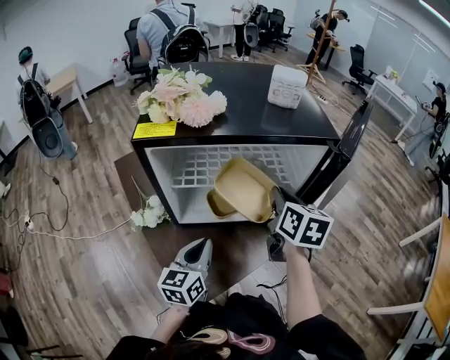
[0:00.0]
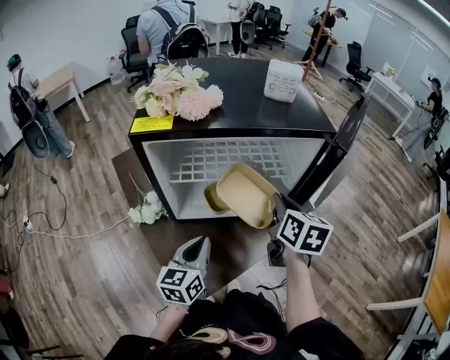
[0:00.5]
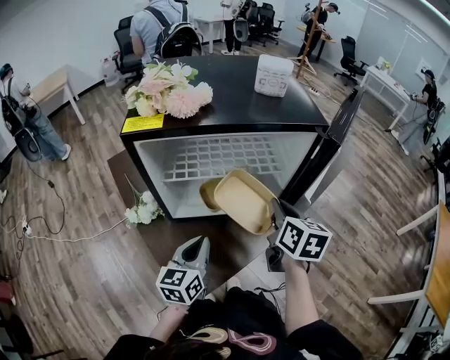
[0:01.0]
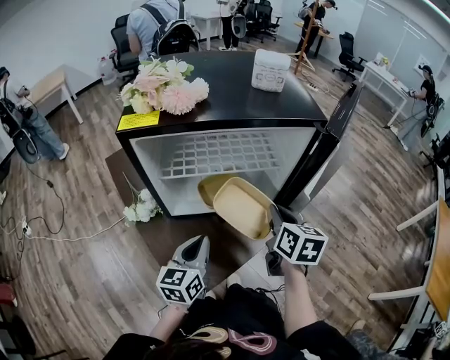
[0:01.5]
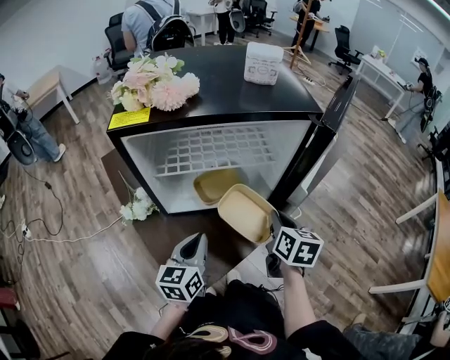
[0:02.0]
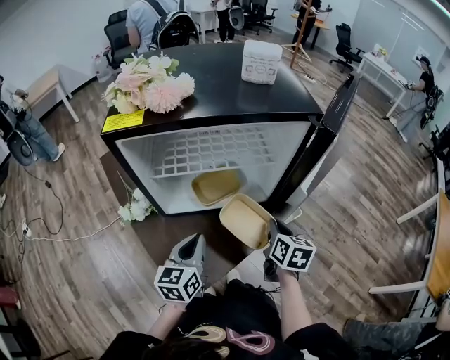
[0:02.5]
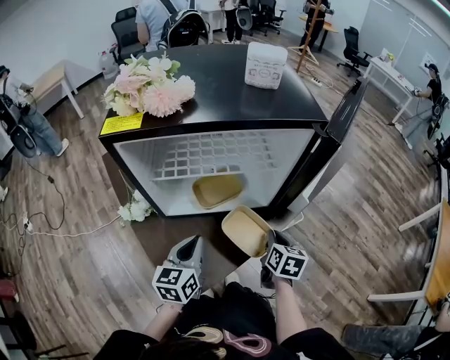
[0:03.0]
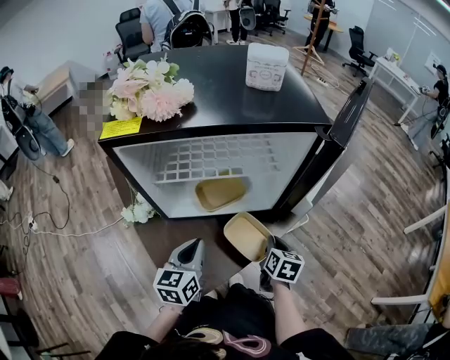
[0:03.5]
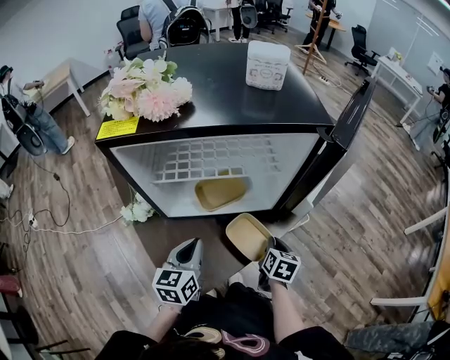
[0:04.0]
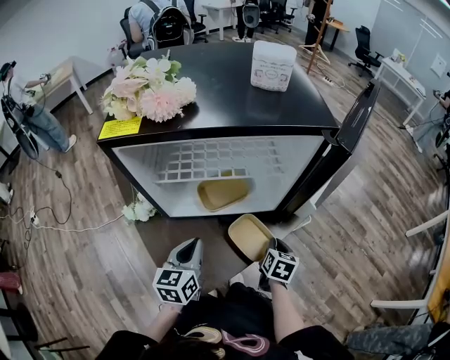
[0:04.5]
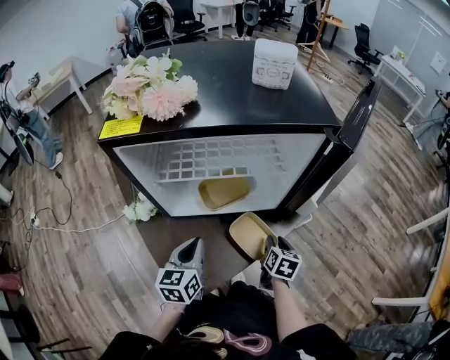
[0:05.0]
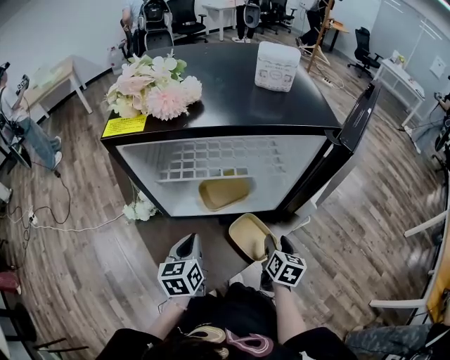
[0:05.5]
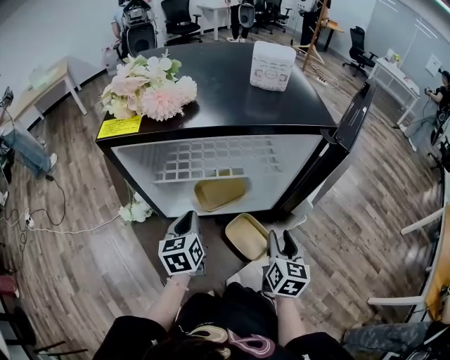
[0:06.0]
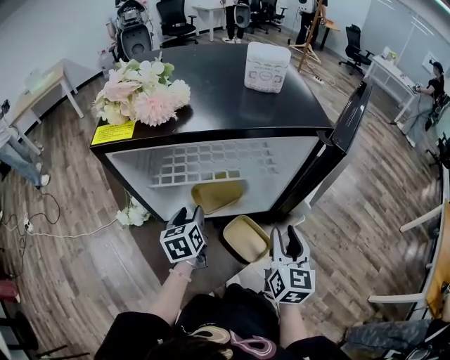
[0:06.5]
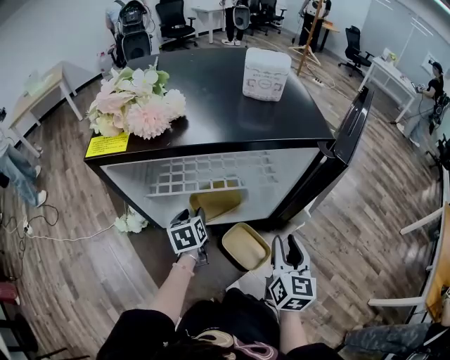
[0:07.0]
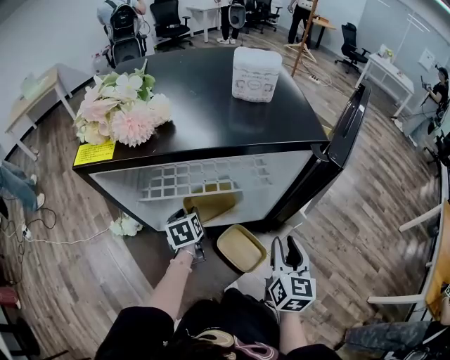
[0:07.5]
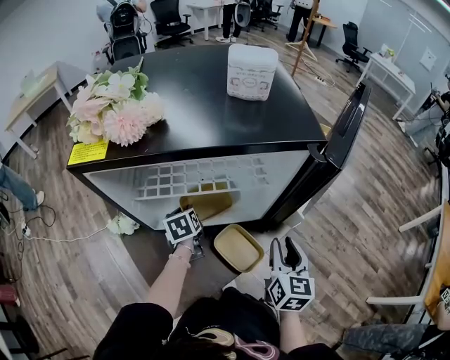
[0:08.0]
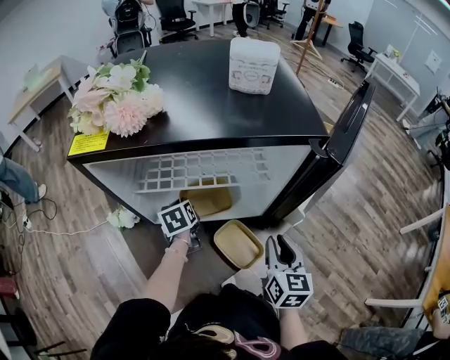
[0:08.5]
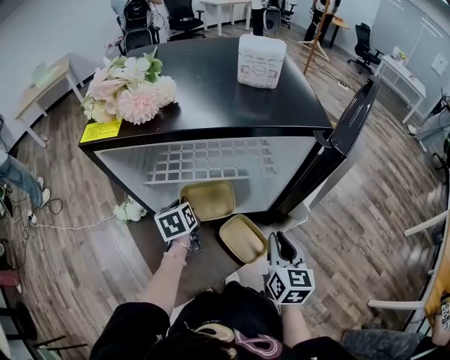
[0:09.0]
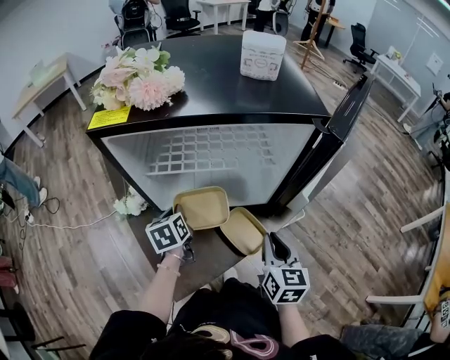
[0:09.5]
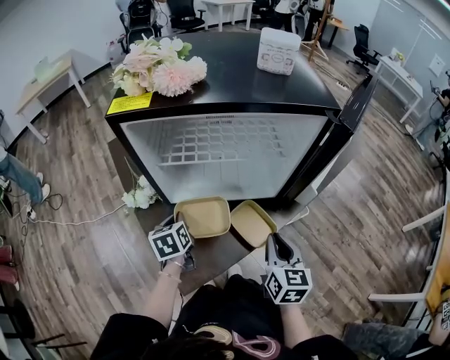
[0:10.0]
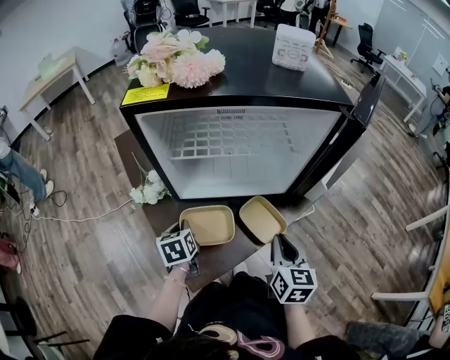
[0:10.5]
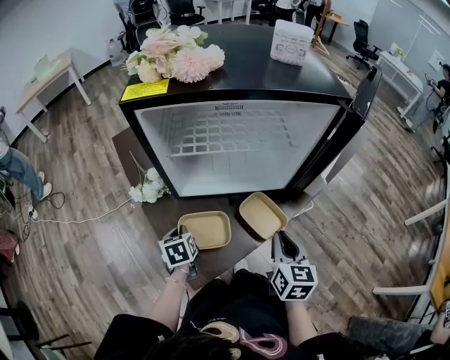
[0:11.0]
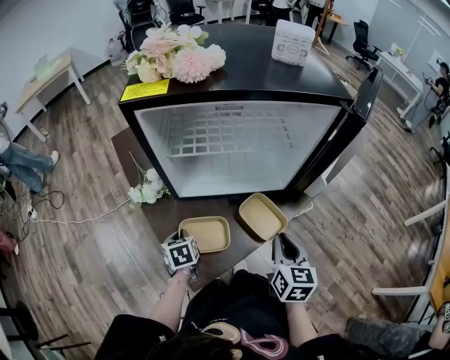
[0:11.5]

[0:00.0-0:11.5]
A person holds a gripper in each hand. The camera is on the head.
0:00.0 to 0:02.0: The right gripper is displaced downward, backward and to the right by approximately 15 cm.
0:02.0 to 0:04.0: The right gripper heads downward, covering approximately 15 cm.
0:04.0 to 0:06.0: The left gripper moves forward, approximately 10 cm, while the right gripper shifts about 10 cm upward, changes its angle by roughly 20 degrees, and opens up.
0:06.0 to 0:07.5: The right gripper ends up roughly 5 cm from where it was; the left gripper heads forward and downward, covering approximately 10 cm, and opens up.
0:07.5 to 0:09.5: The left gripper shifts some 5 cm backward, and closes up; the right gripper shifts by about 5 cm, and closes up.
0:09.5 to 0:11.5: The left gripper travels downward, backward and to the left by roughly 15 cm. Meanwhile the right gripper changes place by about 5 cm.

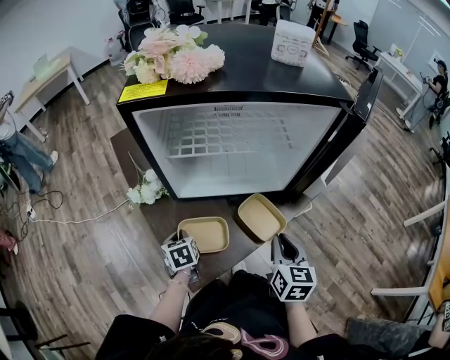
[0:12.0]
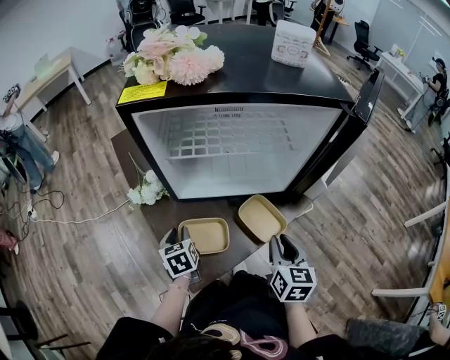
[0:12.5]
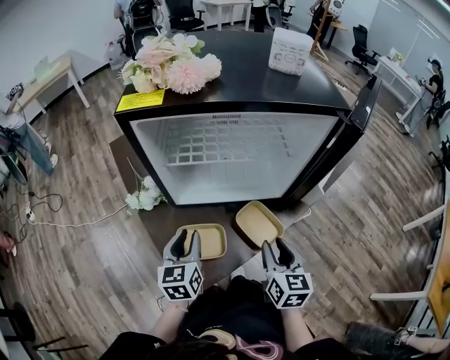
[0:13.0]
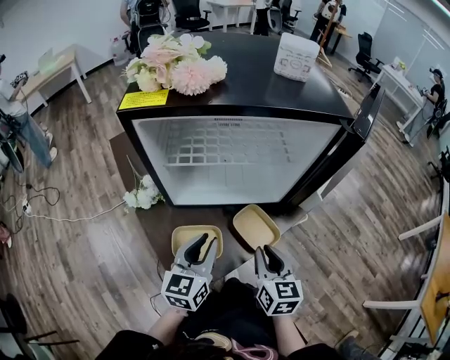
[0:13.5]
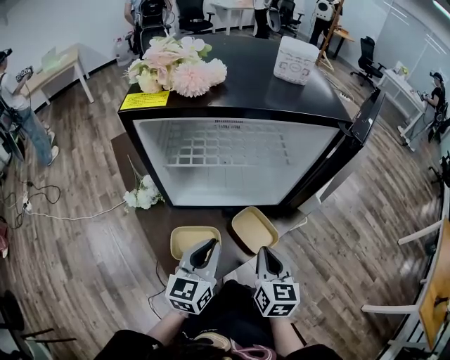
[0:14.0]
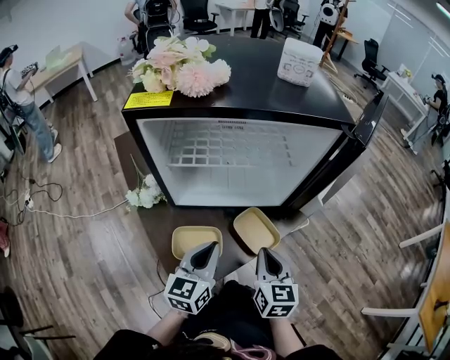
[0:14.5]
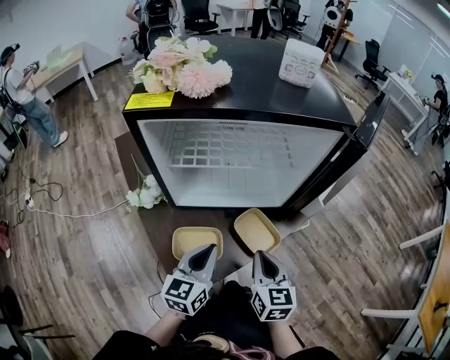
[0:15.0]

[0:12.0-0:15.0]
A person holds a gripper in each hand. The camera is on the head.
0:12.0 to 0:13.5: The left gripper is displaced upward and to the right by some 20 cm, tips its fingers upward by roughly 40 degrees, and opens.
0:13.5 to 0:15.0: The left gripper closes.

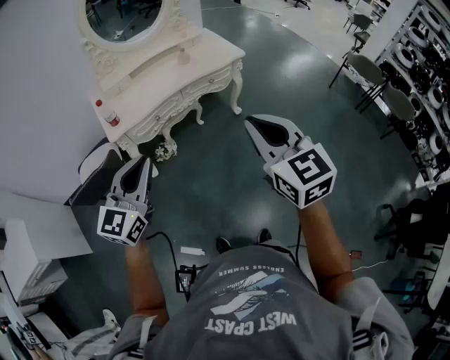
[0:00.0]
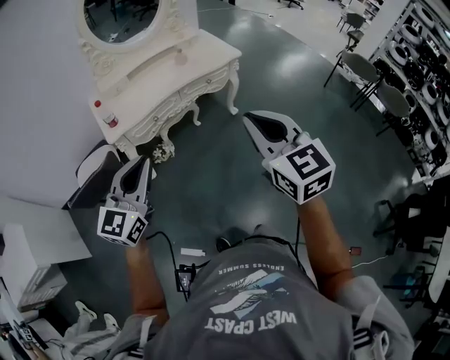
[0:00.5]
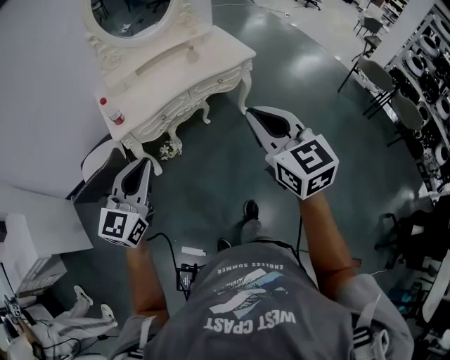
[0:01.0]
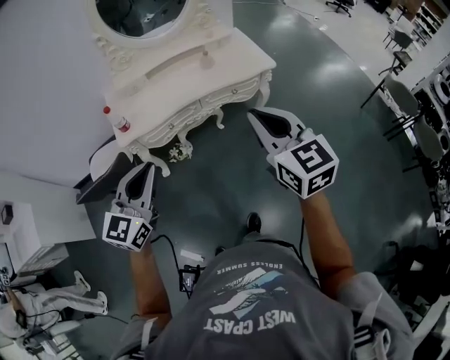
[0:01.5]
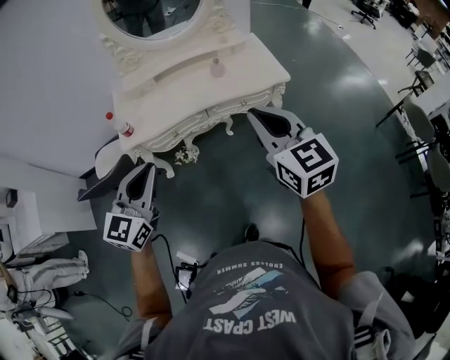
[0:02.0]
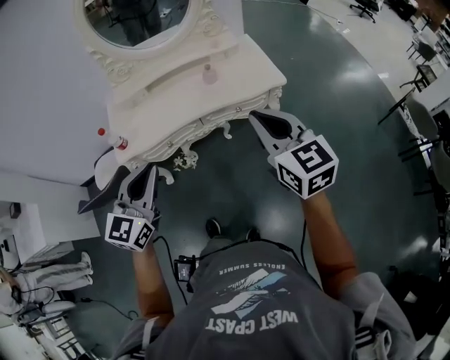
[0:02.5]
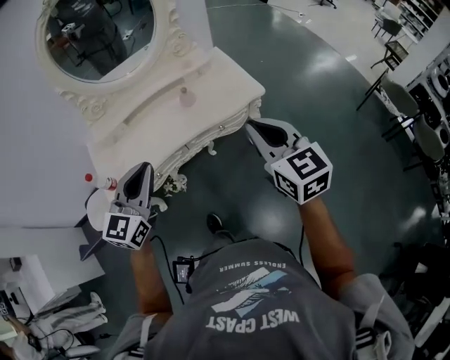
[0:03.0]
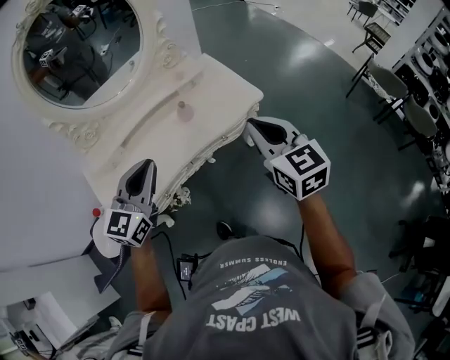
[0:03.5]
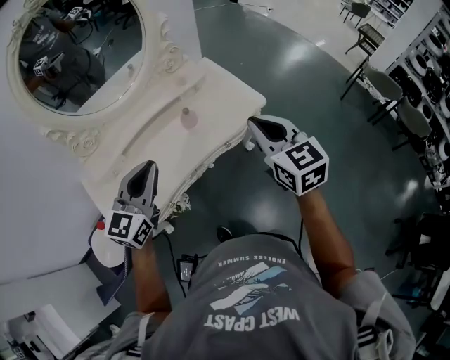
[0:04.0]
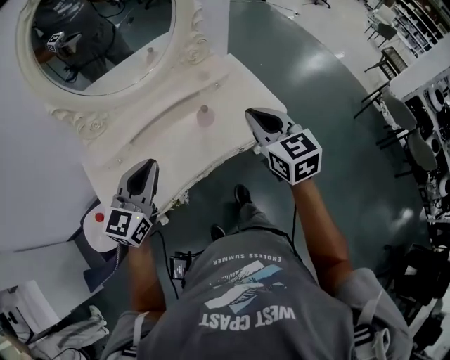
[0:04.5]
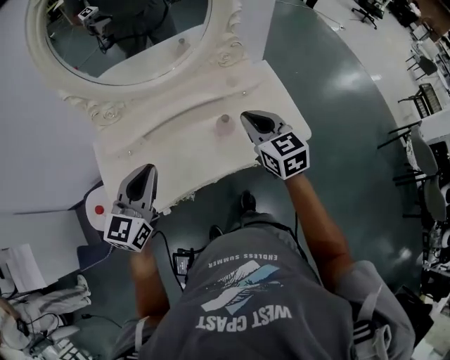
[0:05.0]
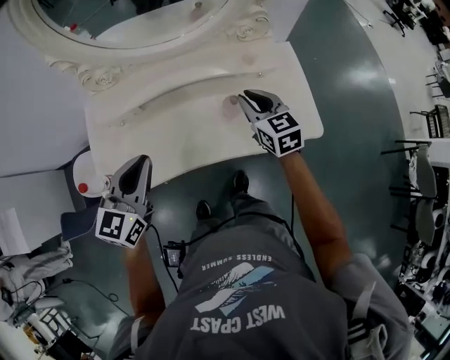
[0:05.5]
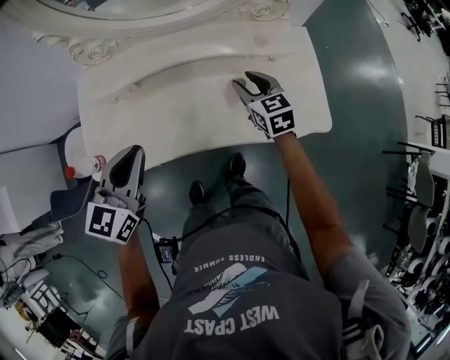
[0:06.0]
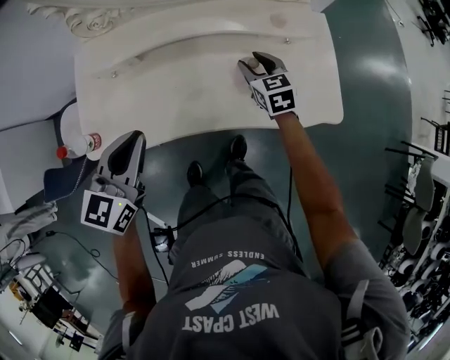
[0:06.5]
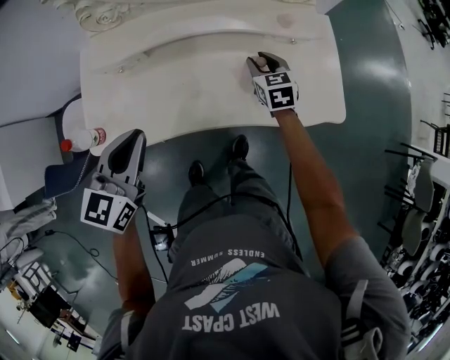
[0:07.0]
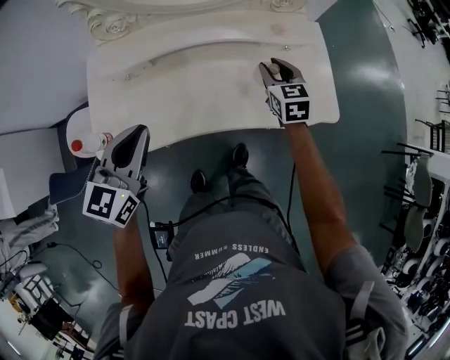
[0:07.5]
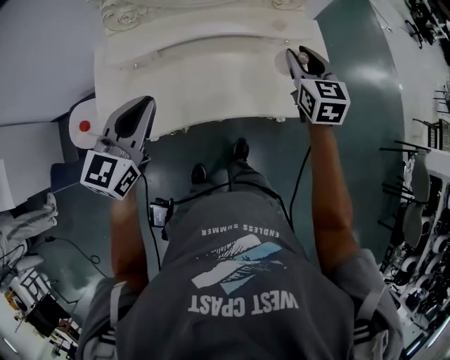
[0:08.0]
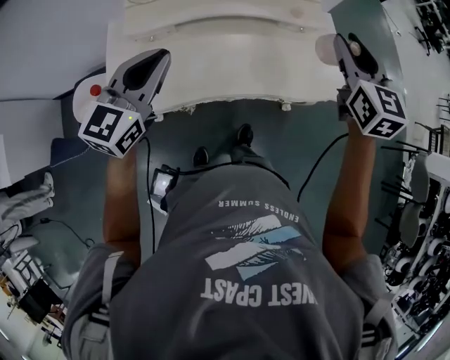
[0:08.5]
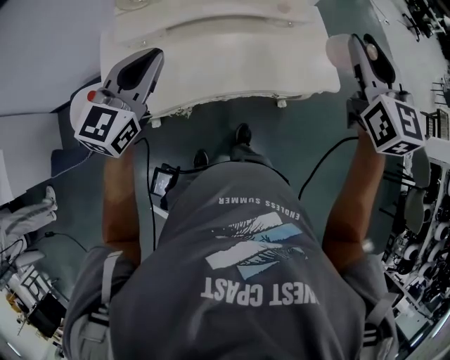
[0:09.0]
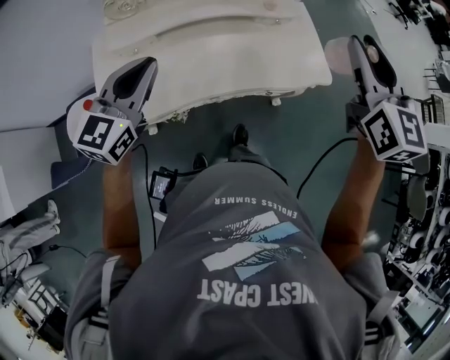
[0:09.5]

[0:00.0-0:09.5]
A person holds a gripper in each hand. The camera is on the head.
0:00.0 to 0:02.0: The left gripper moves forward, roughly 15 cm, while the right gripper heads forward, covering some 25 cm.
0:02.0 to 0:04.0: The two grippers go some 25 cm forward. The right gripper changes its angle by roughly 20 degrees. Meanwhile the left gripper swivels approximately 20 degrees.
0:04.0 to 0:05.5: The right gripper changes place by about 35 cm, and turns by some 30 degrees; the left gripper changes place by roughly 10 cm, and rotates some 30 degrees.
0:05.5 to 0:07.5: The right gripper moves downward, about 5 cm.
0:07.5 to 0:09.5: The right gripper goes approximately 35 cm upward and backward, and rotates approximately 20 degrees. The left gripper is displaced upward by roughly 5 cm.

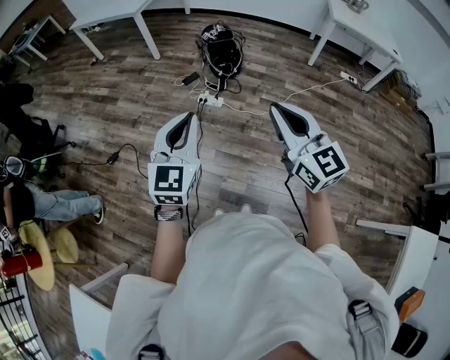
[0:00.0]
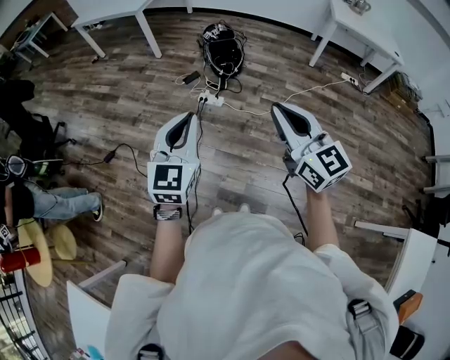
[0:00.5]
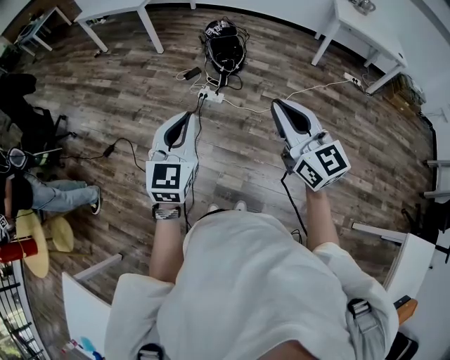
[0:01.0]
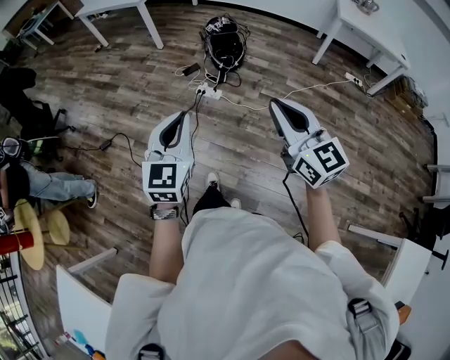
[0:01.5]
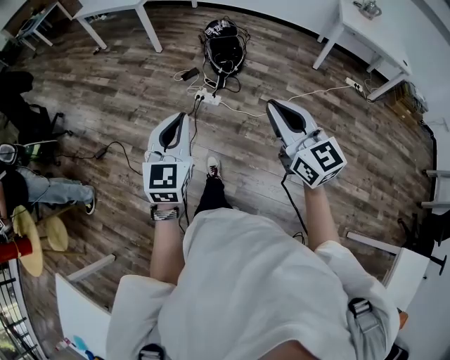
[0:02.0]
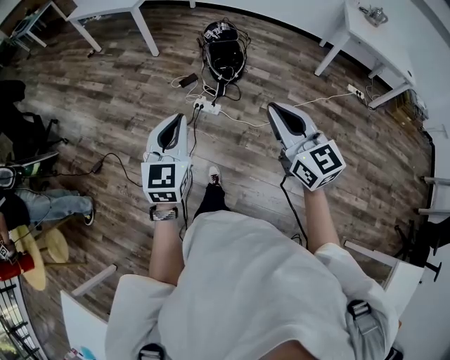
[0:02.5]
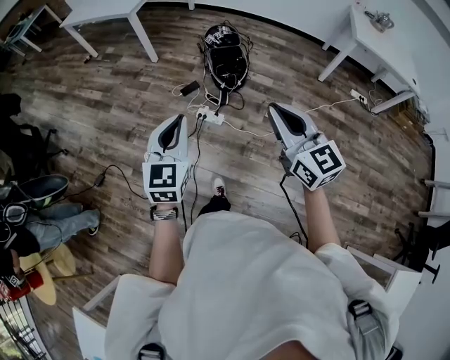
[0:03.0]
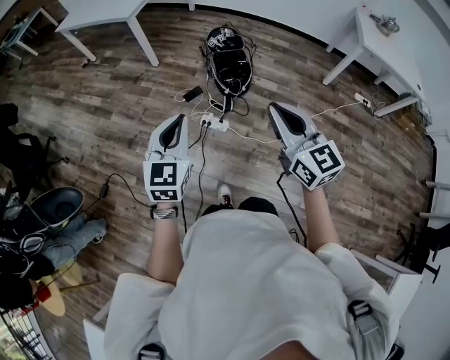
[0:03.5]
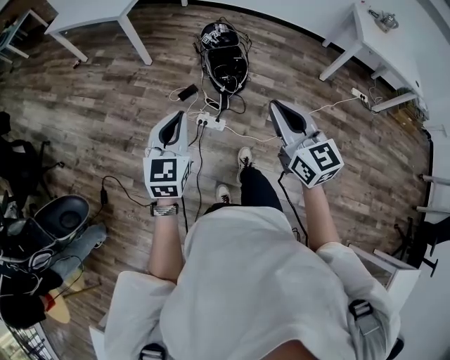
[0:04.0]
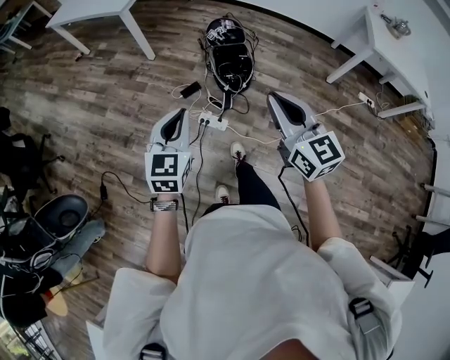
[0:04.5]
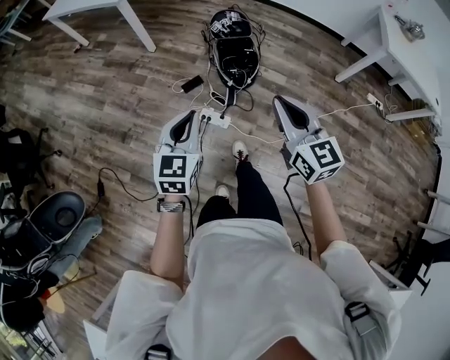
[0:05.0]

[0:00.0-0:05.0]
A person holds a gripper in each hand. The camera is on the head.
0:00.0 to 0:02.5: Both grippers move forward, approximately 15 cm.
0:02.5 to 0:05.0: The left gripper shifts about 40 cm forward and downward. Meanwhile the right gripper goes some 35 cm forward.
